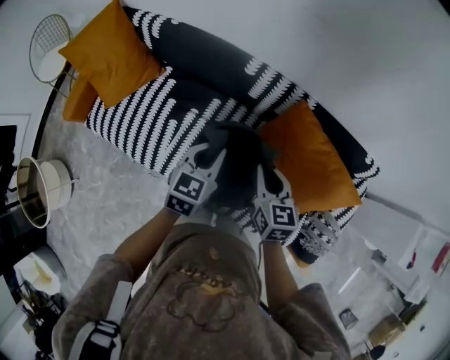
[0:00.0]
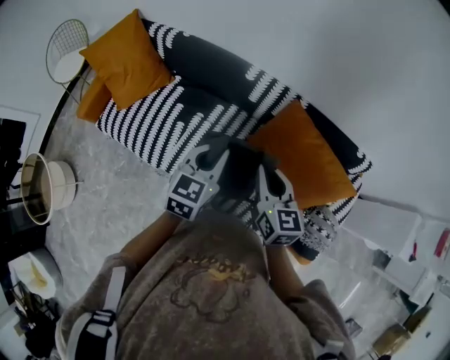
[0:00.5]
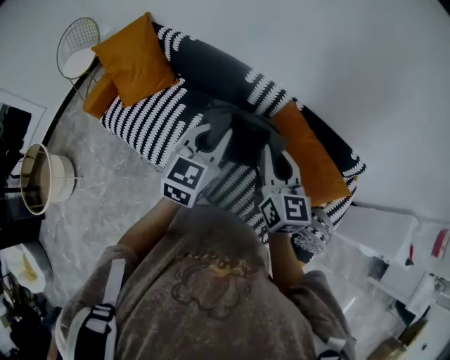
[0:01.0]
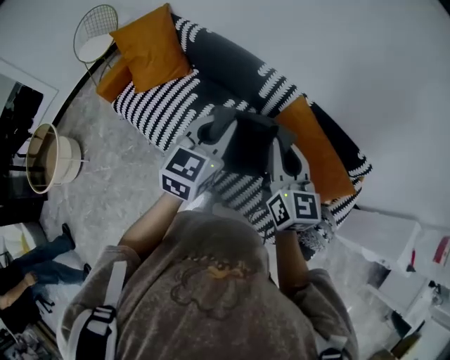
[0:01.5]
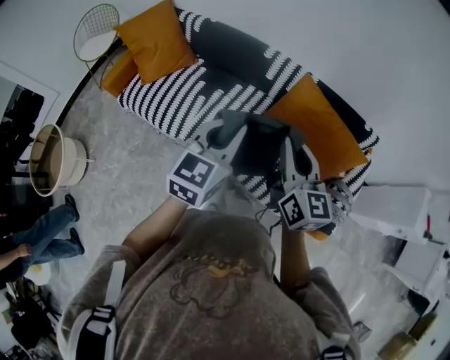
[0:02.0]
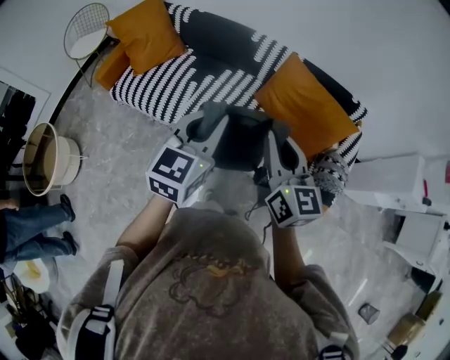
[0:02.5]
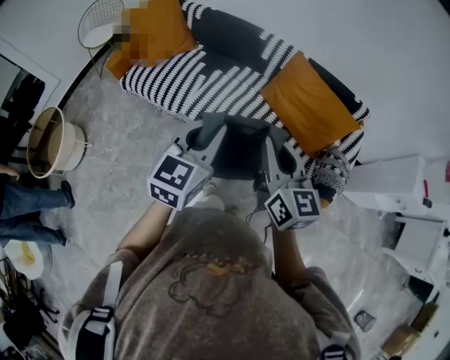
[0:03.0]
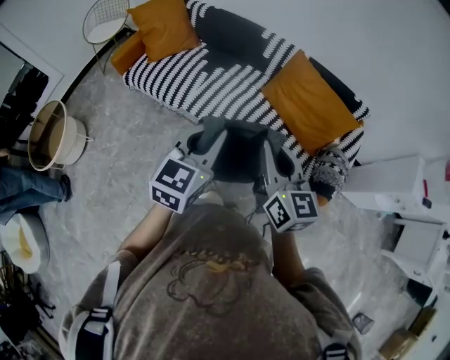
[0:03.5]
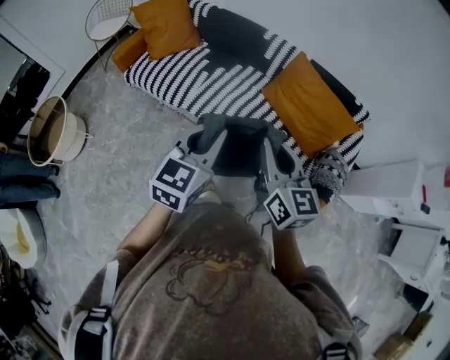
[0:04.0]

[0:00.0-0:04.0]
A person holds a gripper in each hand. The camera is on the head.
0:00.0 to 0:02.0: The two grippers go about 35 cm backward and upward. The right gripper rotates roughly 30 degrees.
0:02.0 to 0:04.0: The grippers both shift backward by some 25 cm.

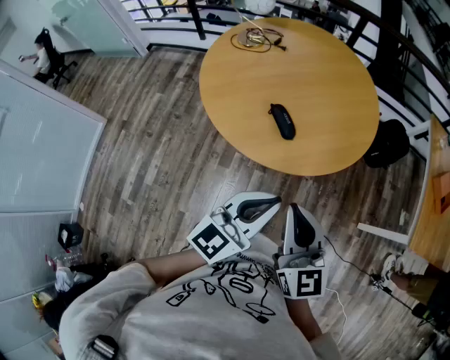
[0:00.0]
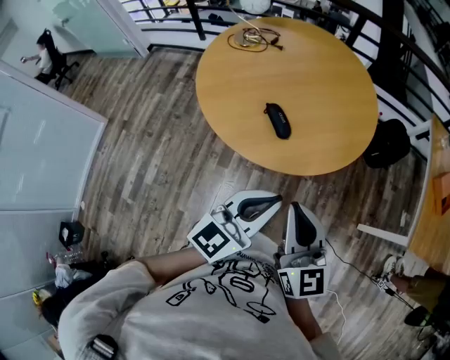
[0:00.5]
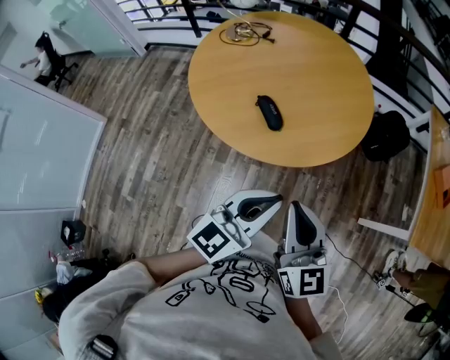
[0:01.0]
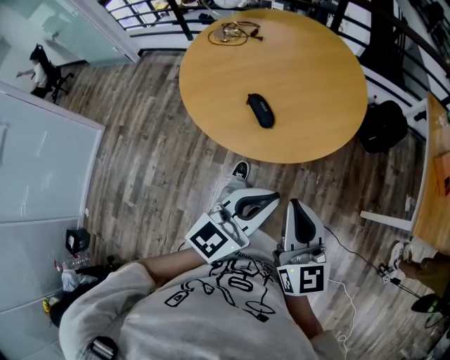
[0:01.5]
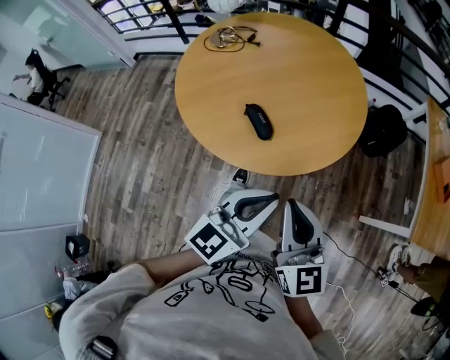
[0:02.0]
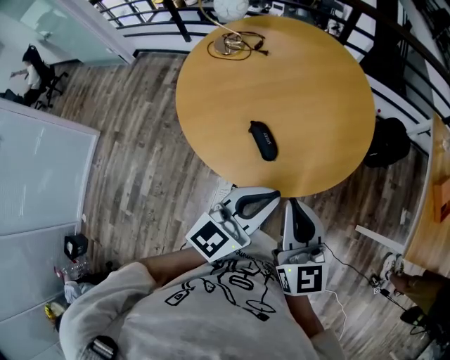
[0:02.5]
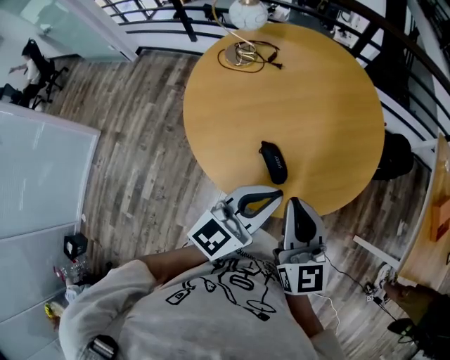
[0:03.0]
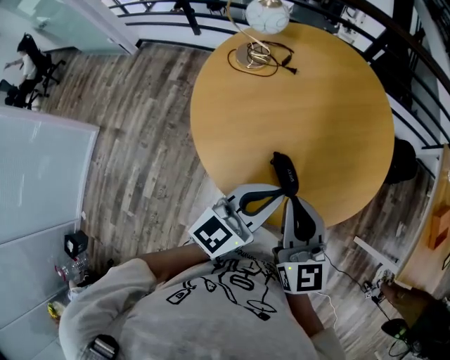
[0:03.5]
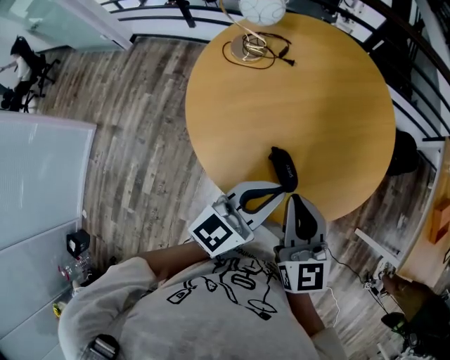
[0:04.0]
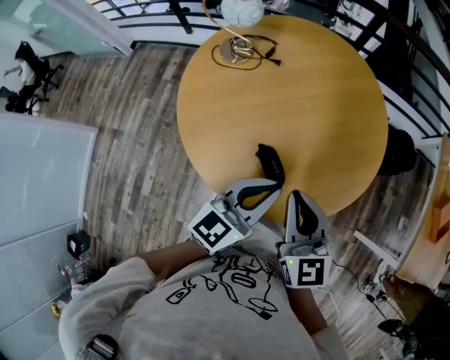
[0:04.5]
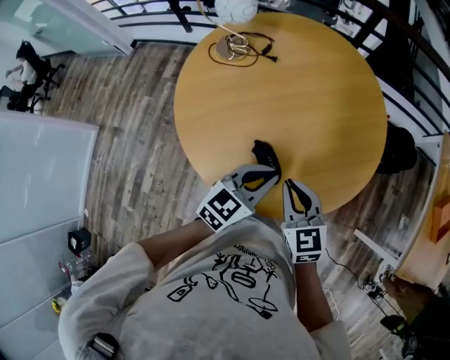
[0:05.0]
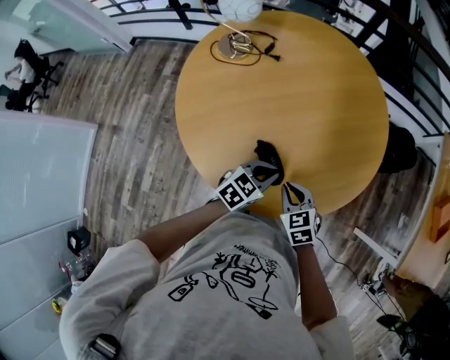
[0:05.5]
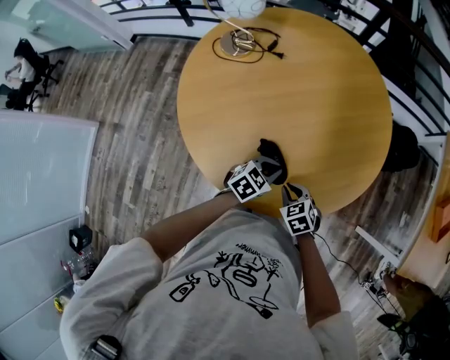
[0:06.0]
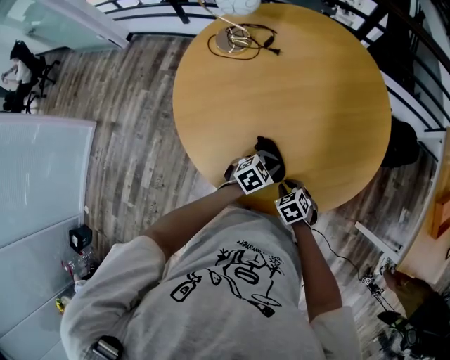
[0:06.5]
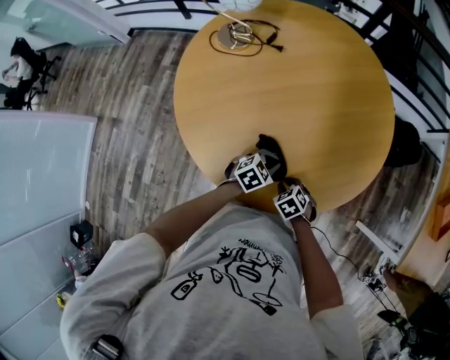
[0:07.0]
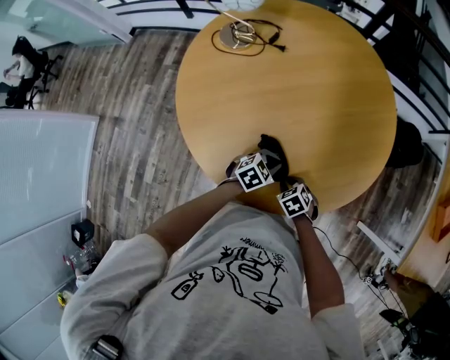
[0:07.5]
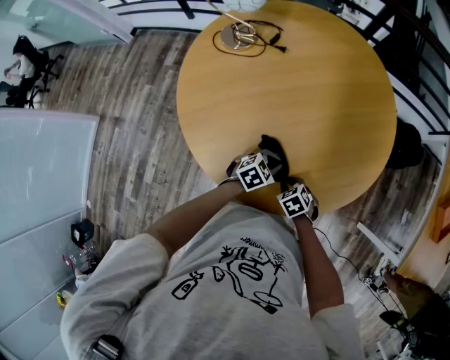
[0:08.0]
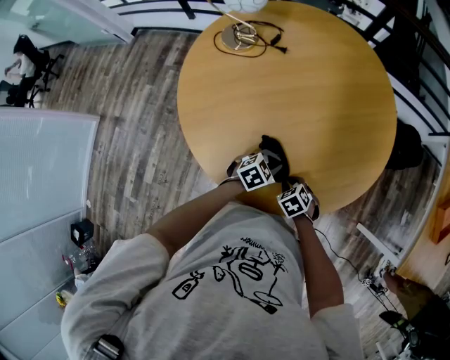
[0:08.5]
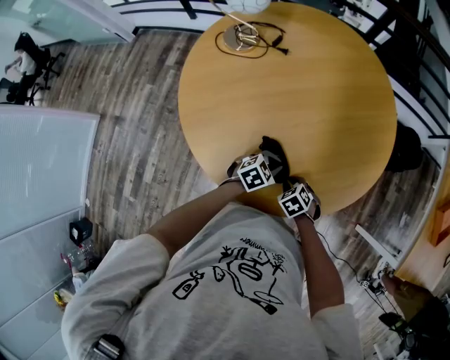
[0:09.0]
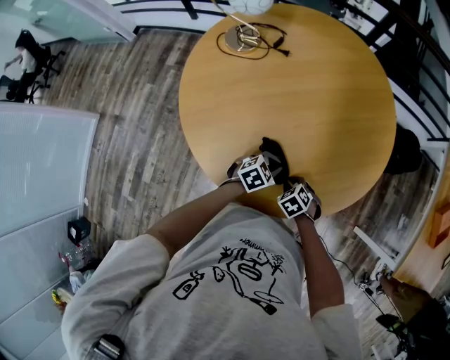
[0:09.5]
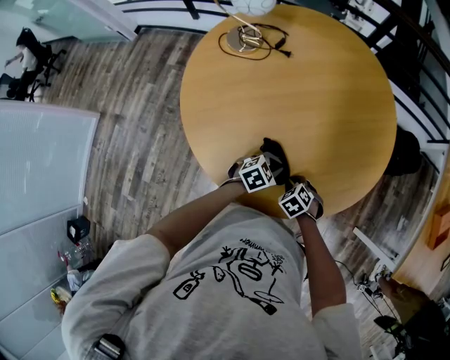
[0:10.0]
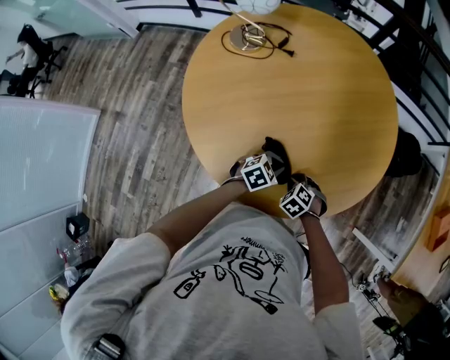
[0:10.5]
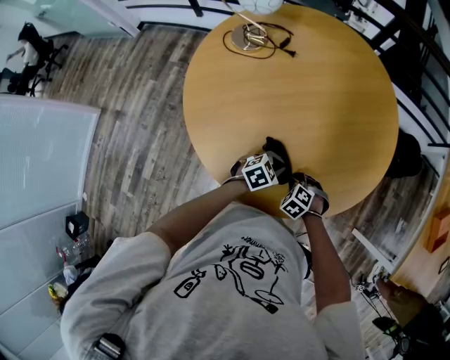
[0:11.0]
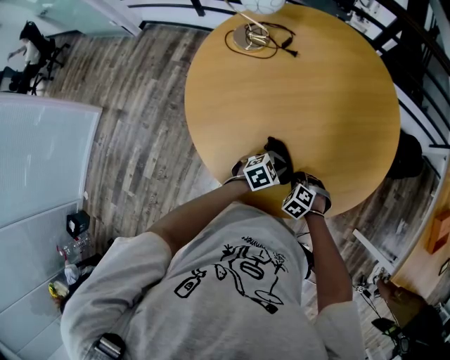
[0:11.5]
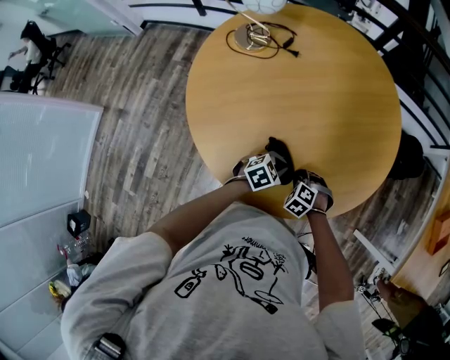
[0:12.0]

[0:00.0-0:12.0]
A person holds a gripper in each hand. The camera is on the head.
0:00.0 to 0:02.0: Both grippers move to the right and forward, approximately 10 cm.
0:02.0 to 0:04.0: Both grippers travel together forward and to the left, approximately 30 cm.
0:04.0 to 0:06.0: Both grippers travel together downward, some 25 cm. The left gripper points its fingers some 40 degrees further downward. Meanwhile the right gripper angles its fingers downward, by about 40 degrees.
0:06.0 to 0:08.0: The two grippers go about 5 cm downward.
0:08.0 to 0:10.0: There are only small adjustments of the grippers.
0:10.0 to 0:12.0: The right gripper swivels roughly 20 degrees.

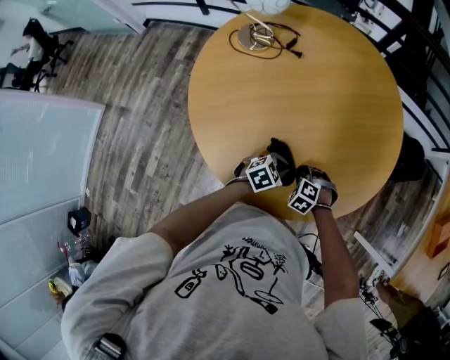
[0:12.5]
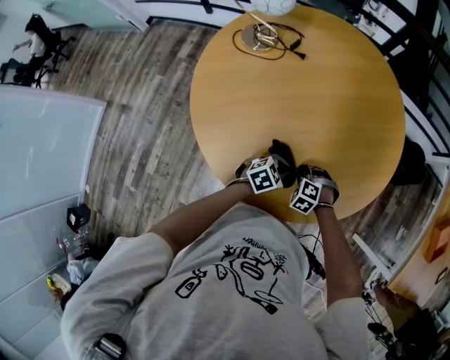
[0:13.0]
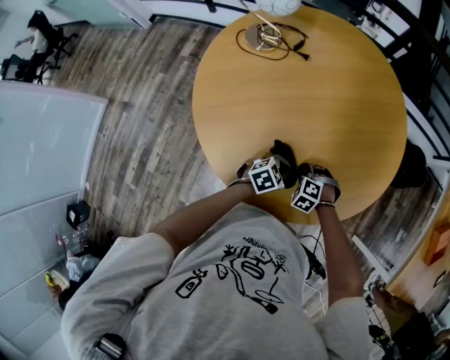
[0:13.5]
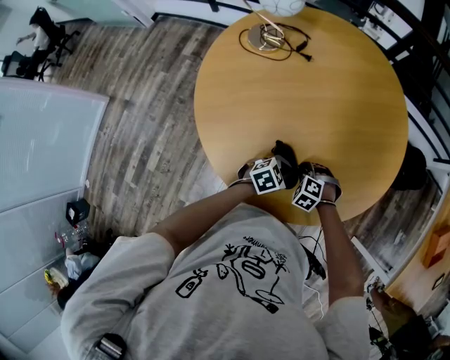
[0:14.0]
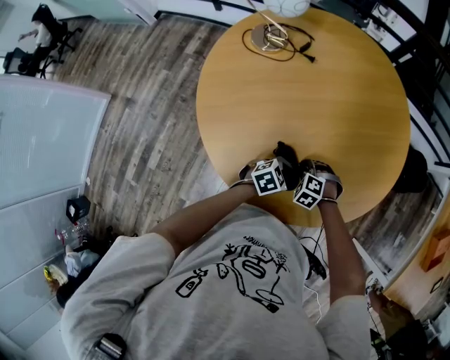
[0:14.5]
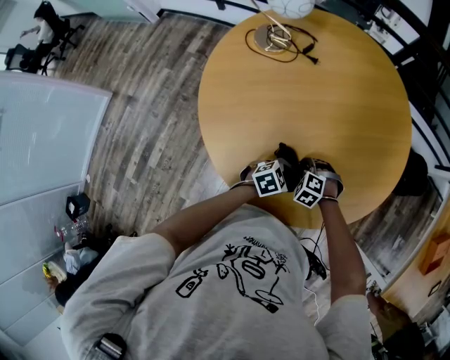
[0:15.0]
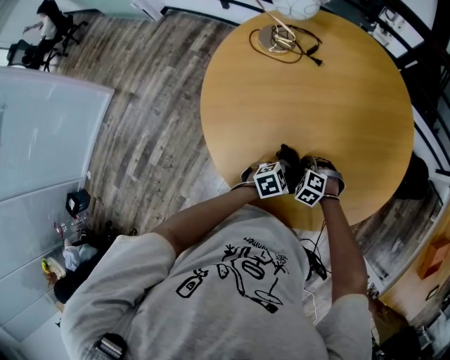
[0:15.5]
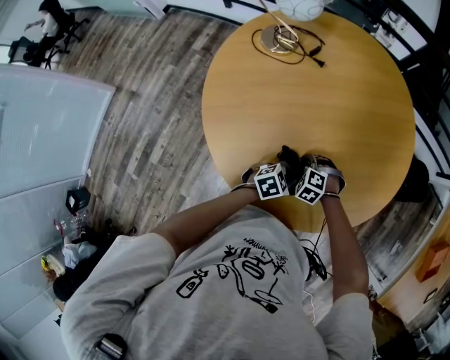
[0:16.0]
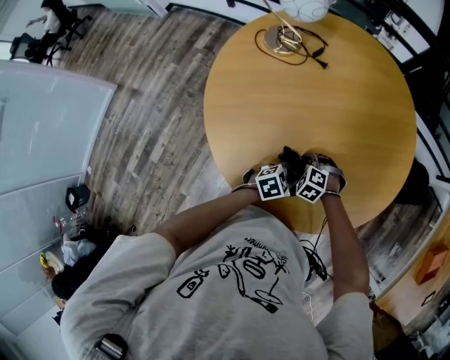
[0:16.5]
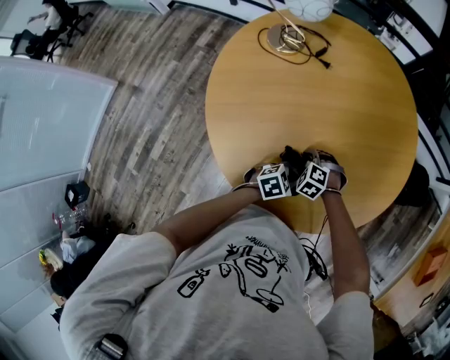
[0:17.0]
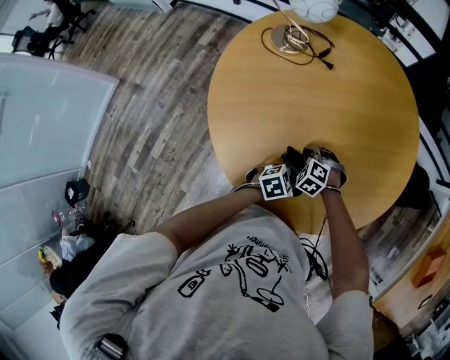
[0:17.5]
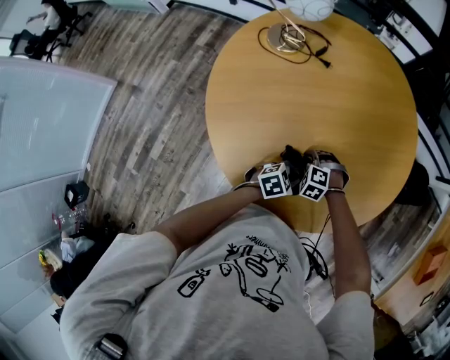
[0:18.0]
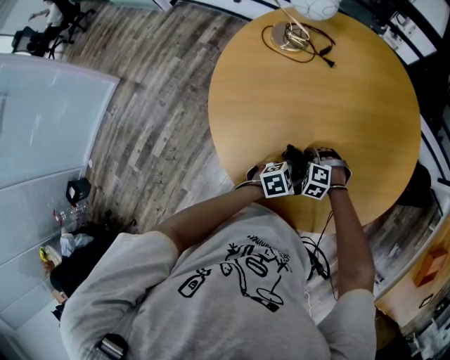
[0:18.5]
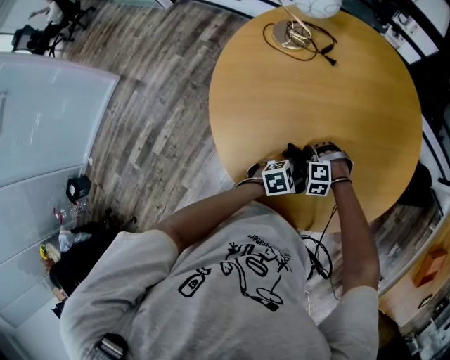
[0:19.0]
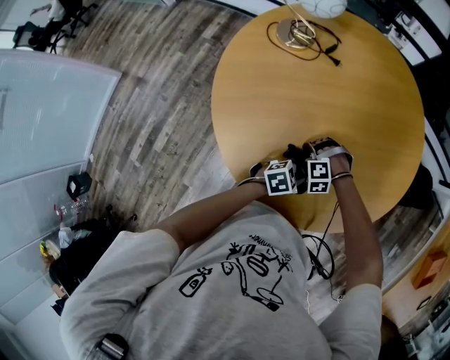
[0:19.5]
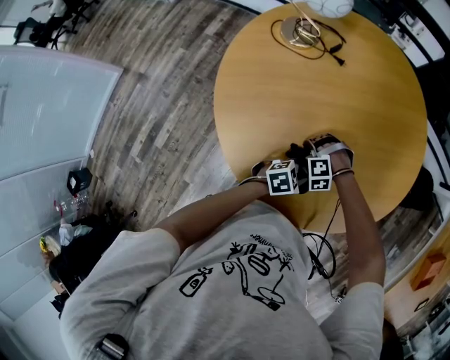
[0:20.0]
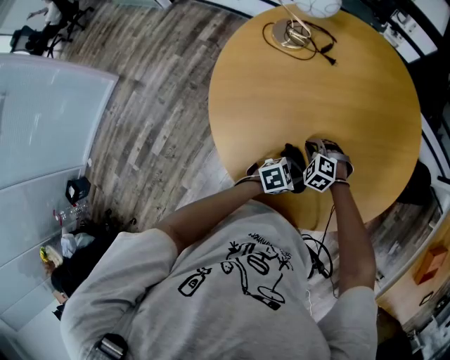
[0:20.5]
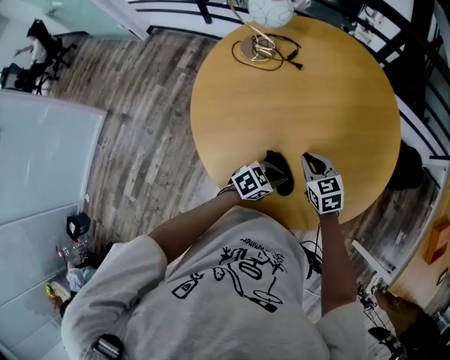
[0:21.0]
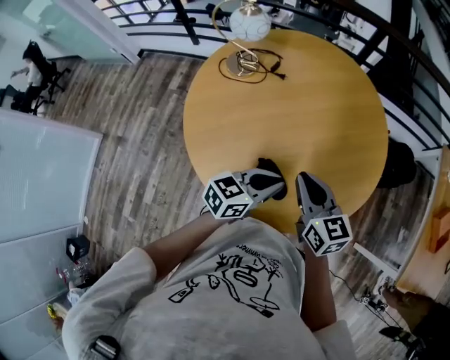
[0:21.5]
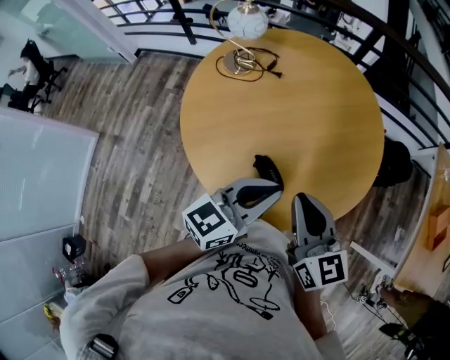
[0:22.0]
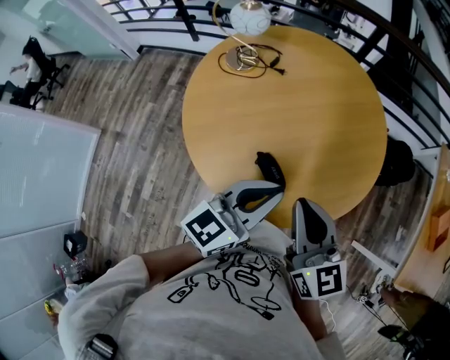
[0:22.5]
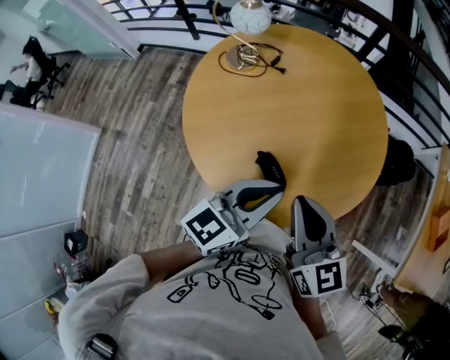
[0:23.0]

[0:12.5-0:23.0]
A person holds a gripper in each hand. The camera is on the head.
0:12.5 to 0:14.5: There are only small adjustments of the grippers.
0:14.5 to 0:16.5: The right gripper moves some 5 cm.
0:16.5 to 0:19.0: The right gripper turns by about 30 degrees.
0:19.0 to 0:21.0: The right gripper shifts some 15 cm upward, and rotates around the line of its fingers by some 70 degrees, clockwise from behind.
0:21.0 to 0:23.0: The right gripper shifts roughly 30 cm upward and backward, and angles its fingers upward, by about 30 degrees. The left gripper heads upward, covering about 30 cm, and tips its fingers upward by some 30 degrees.
